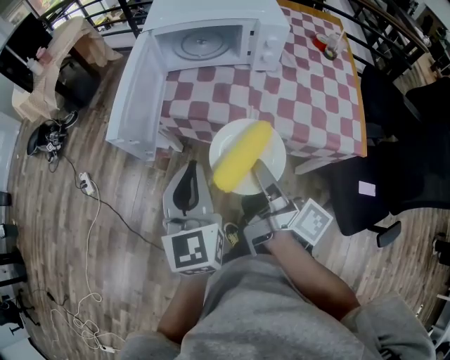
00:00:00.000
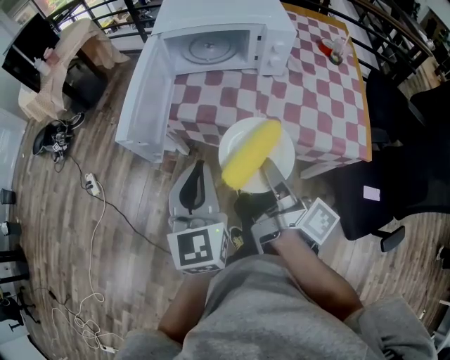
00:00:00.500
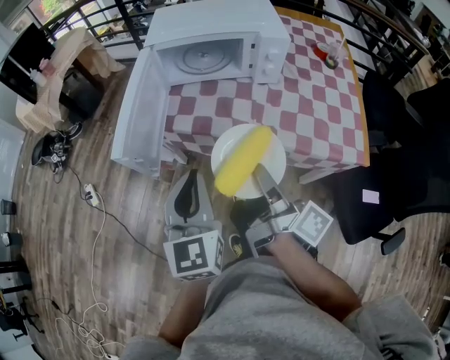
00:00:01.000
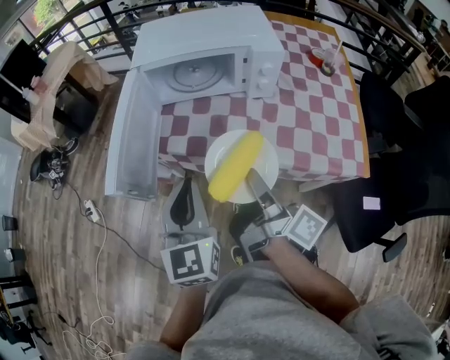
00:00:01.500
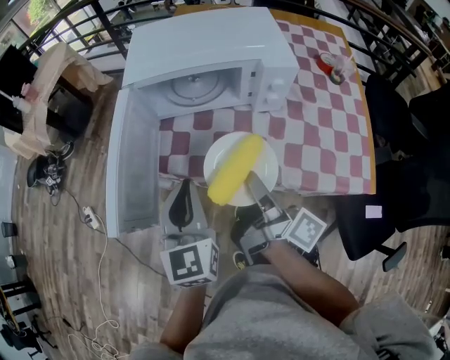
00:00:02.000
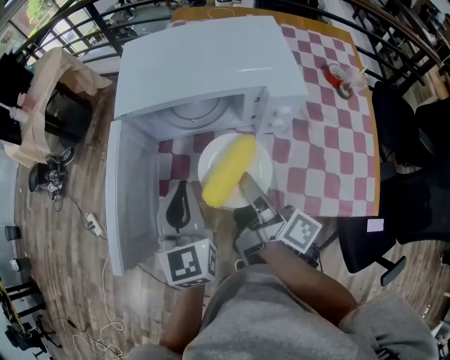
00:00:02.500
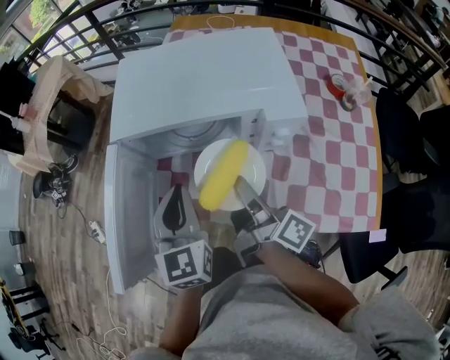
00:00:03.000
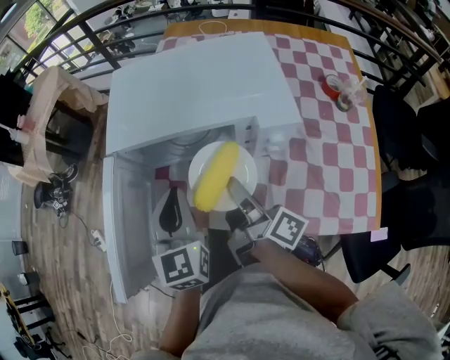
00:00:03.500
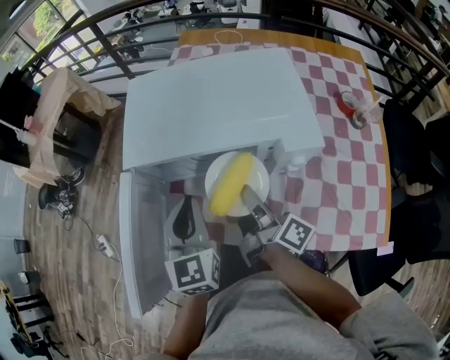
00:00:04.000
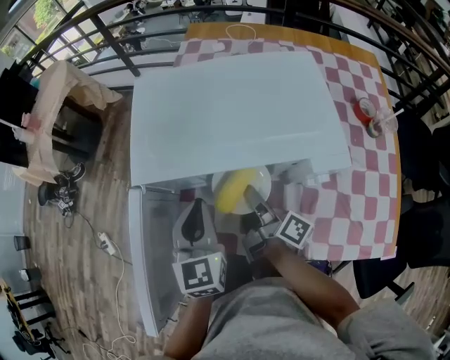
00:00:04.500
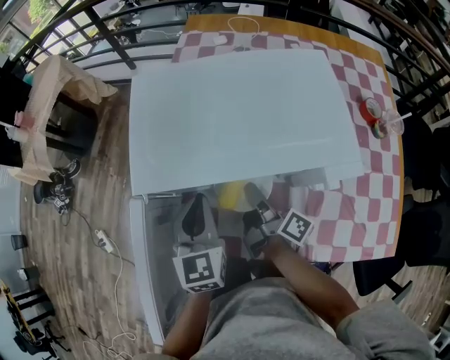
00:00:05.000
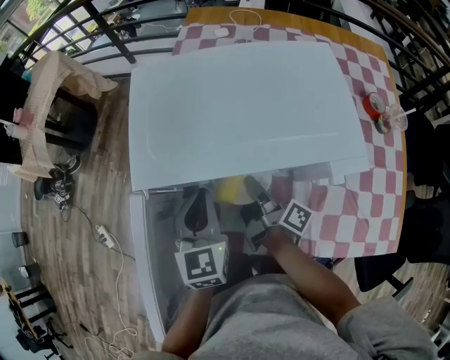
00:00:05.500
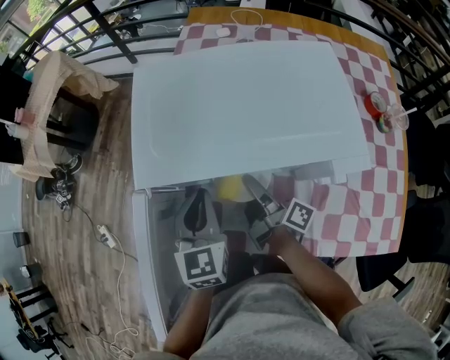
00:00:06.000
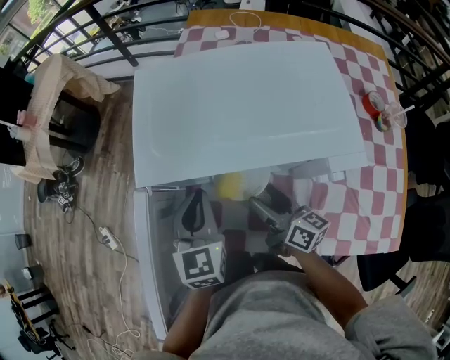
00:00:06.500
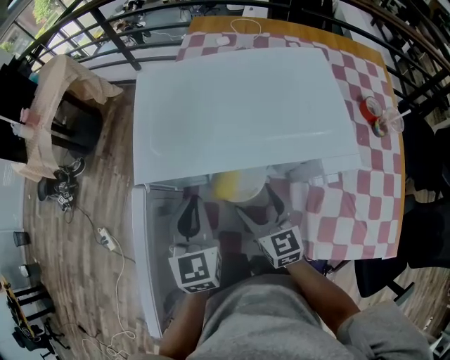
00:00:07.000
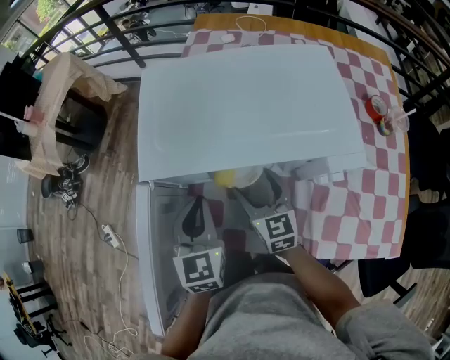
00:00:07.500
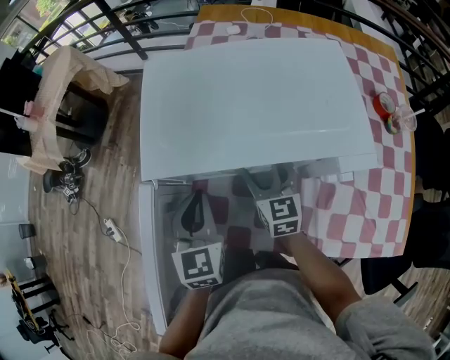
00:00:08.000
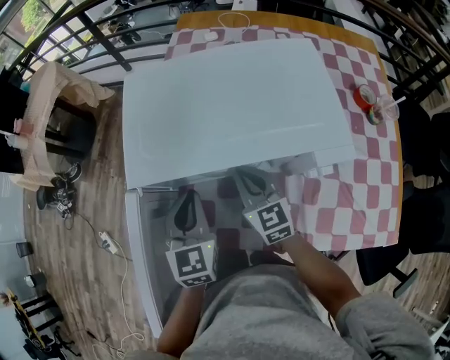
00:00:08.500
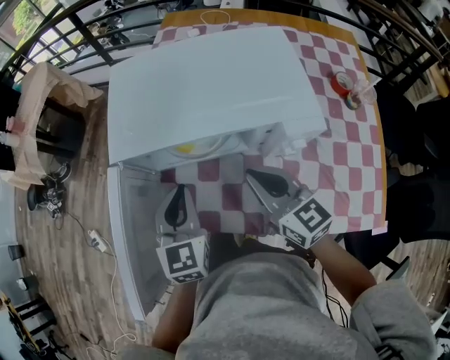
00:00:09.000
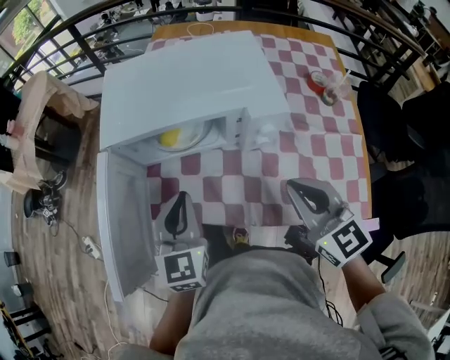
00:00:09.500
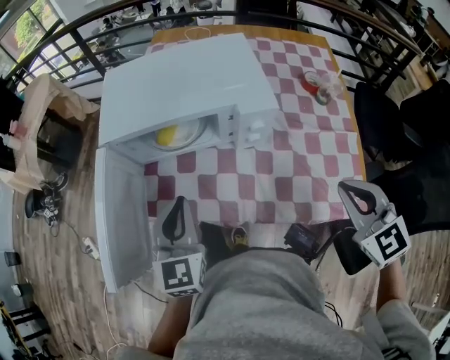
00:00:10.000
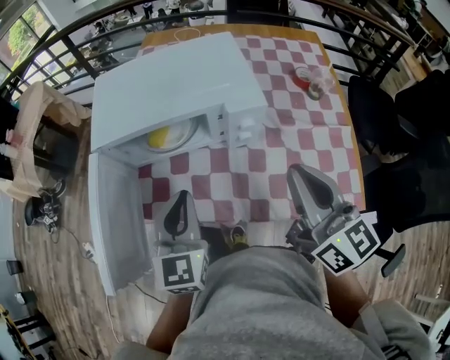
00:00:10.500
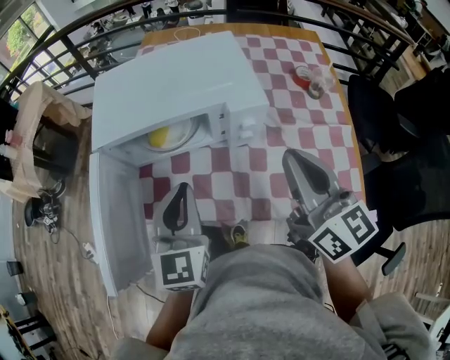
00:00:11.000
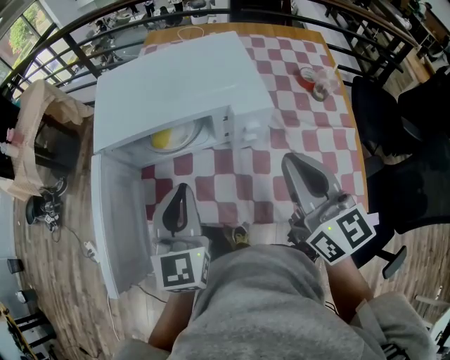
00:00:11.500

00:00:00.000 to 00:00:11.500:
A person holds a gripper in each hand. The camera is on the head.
00:00:00.000 to 00:00:02.000: Both grippers travel together forward, roughly 15 cm.
00:00:02.000 to 00:00:04.000: Both grippers move forward, some 20 cm.
00:00:04.000 to 00:00:06.000: The right gripper shifts about 15 cm downward and forward, while the left gripper heads forward and downward, covering roughly 10 cm.
00:00:06.000 to 00:00:07.500: The right gripper twists about 80 degrees counterclockwise, seen from behind, and opens.
00:00:07.500 to 00:00:09.500: The right gripper heads backward, upward and to the right, covering roughly 30 cm, and closes, while the left gripper travels backward and to the right by about 15 cm.
00:00:09.500 to 00:00:11.500: The left gripper changes place by roughly 5 cm; the right gripper is displaced upward by about 5 cm, goes to the right and returns, about 10 cm each way, and changes its angle by approximately 20 degrees.

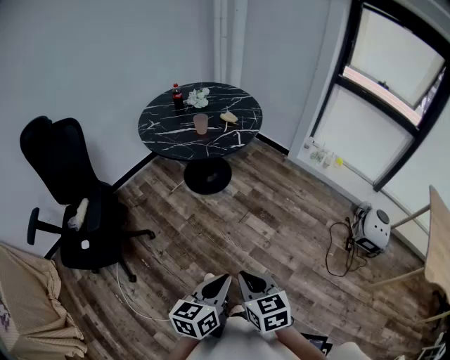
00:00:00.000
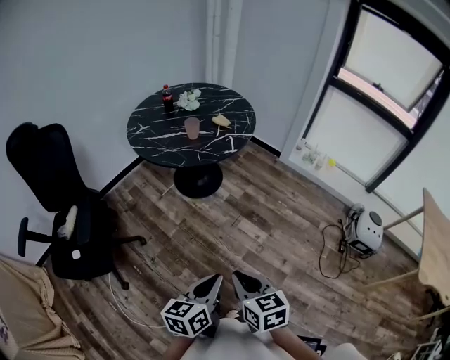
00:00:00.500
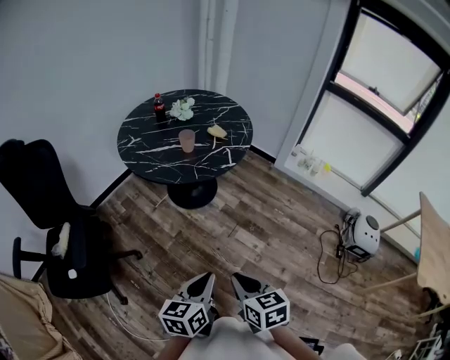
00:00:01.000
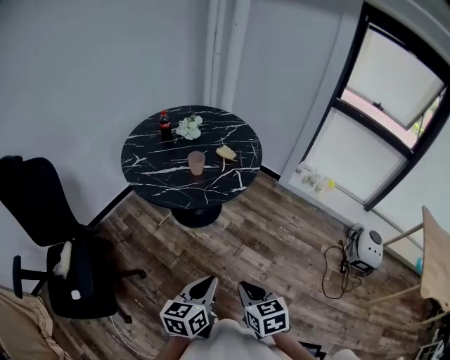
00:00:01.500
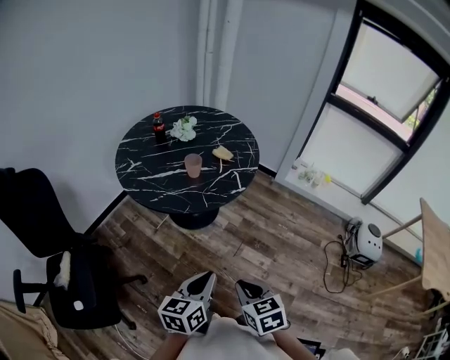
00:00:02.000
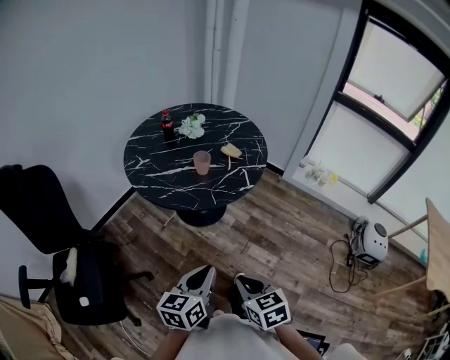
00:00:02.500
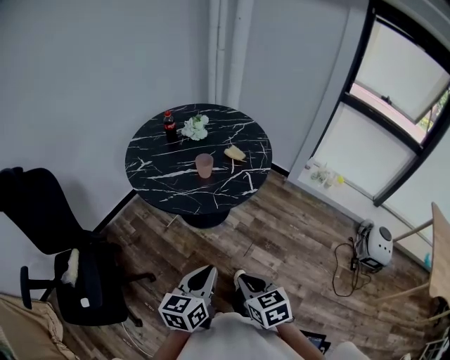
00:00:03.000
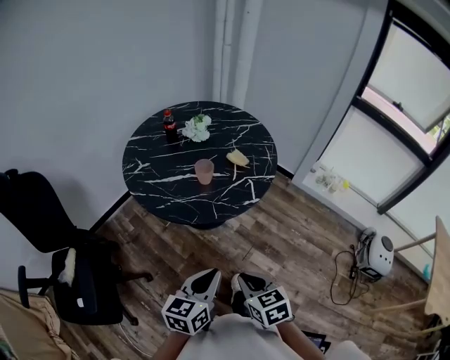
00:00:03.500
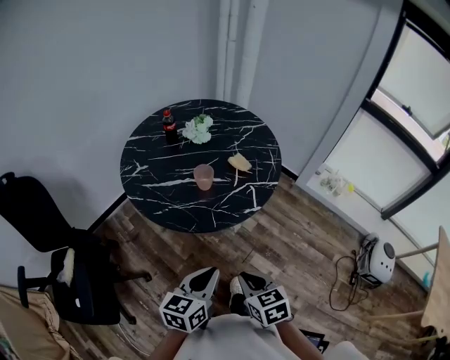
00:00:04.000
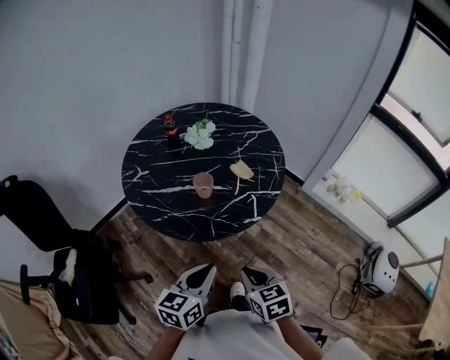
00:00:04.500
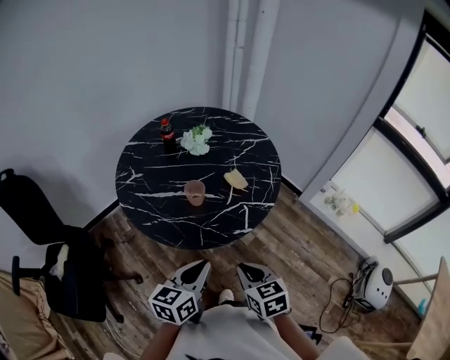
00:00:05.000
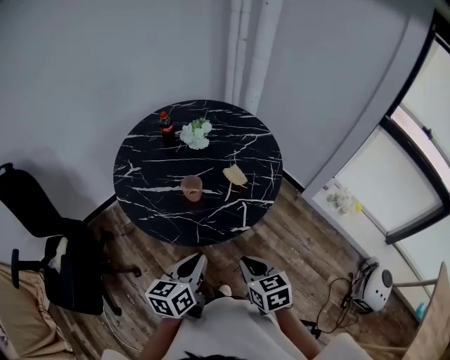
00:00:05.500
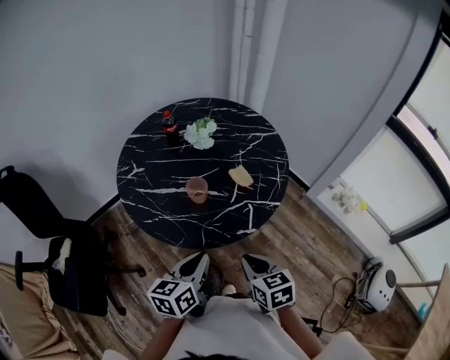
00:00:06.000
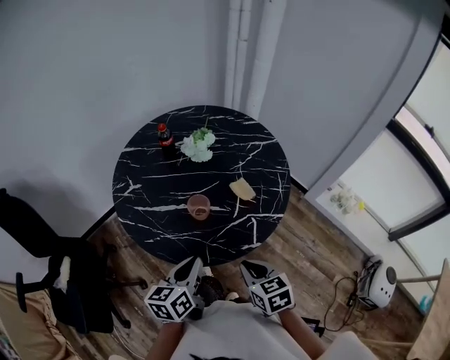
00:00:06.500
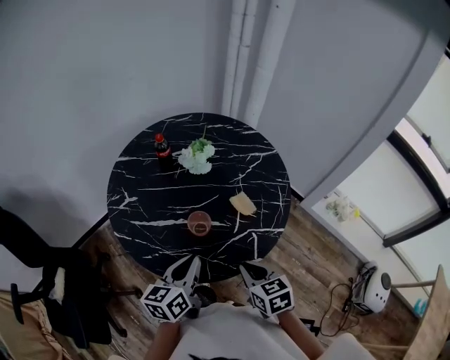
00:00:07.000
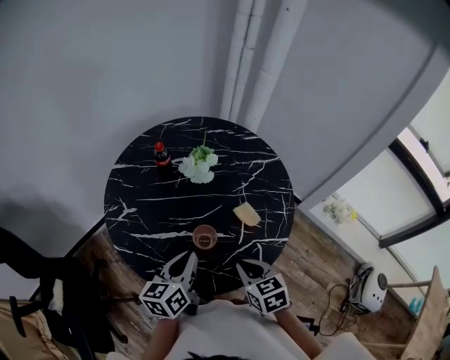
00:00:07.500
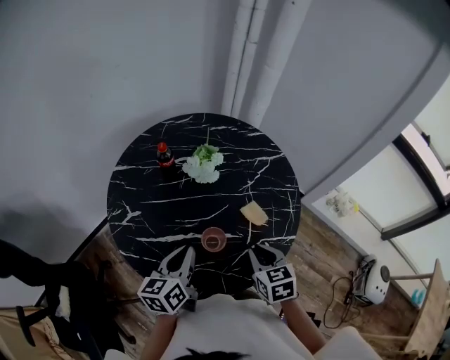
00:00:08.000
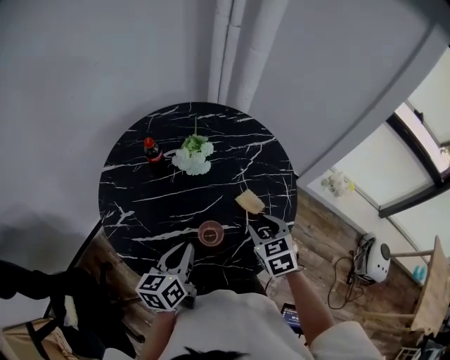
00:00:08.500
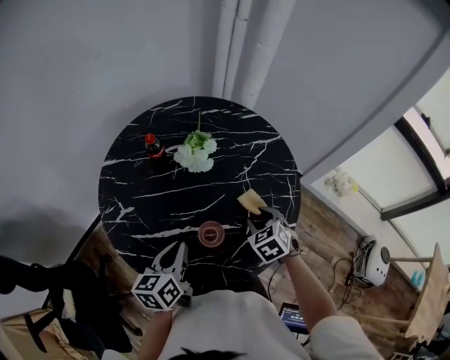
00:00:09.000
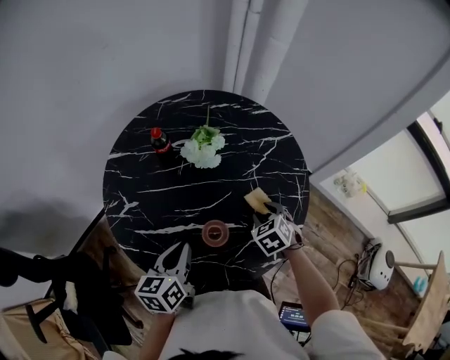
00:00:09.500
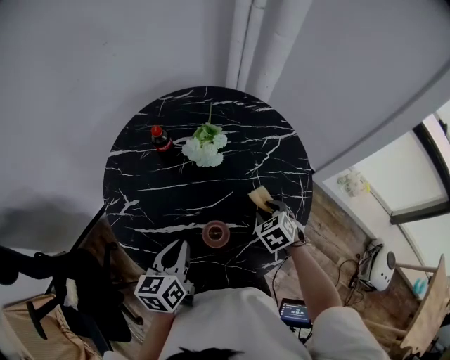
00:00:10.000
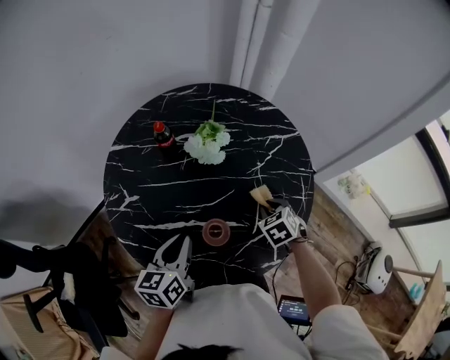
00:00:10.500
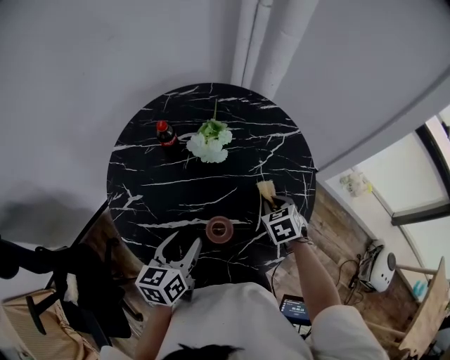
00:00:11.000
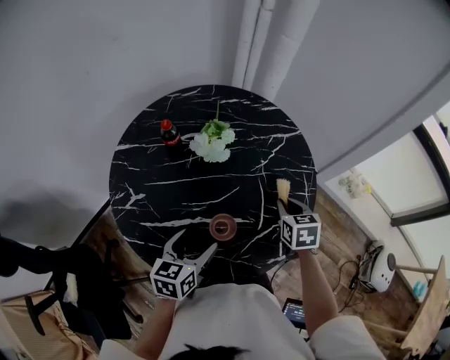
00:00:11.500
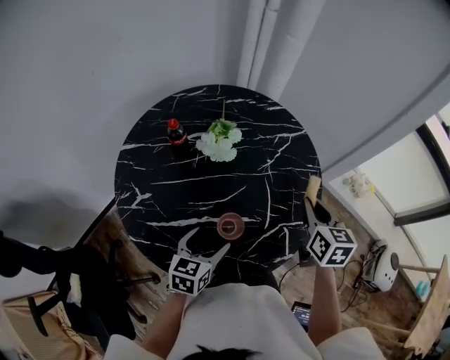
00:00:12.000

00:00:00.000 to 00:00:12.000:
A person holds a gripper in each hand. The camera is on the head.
00:00:00.000 to 00:00:02.000: The left gripper goes some 30 cm forward and to the left, while the right gripper moves forward, roughly 20 cm.
00:00:02.000 to 00:00:04.000: The grippers both shift forward by roughly 15 cm.
00:00:04.000 to 00:00:06.000: The left gripper is displaced forward by about 15 cm. Meanwhile the right gripper heads forward and to the right, covering about 15 cm.
00:00:06.000 to 00:00:08.000: The right gripper is displaced forward by some 20 cm. Meanwhile the left gripper moves forward and to the left, some 25 cm.
00:00:08.000 to 00:00:10.000: The right gripper goes approximately 15 cm forward and downward, swivels about 30 degrees, and opens its fingers.
00:00:10.000 to 00:00:12.000: The right gripper travels upward by approximately 15 cm, changes its angle by about 50 degrees, and closes. The left gripper moves downward, approximately 5 cm, rotates roughly 20 degrees, and opens up.

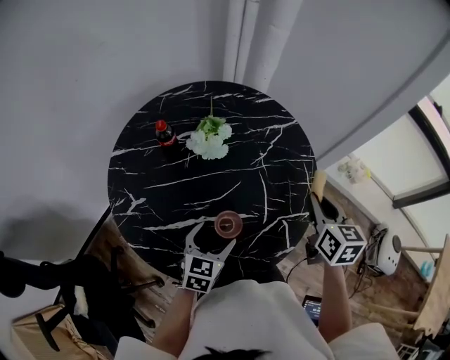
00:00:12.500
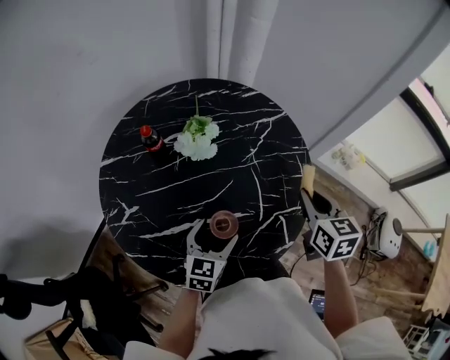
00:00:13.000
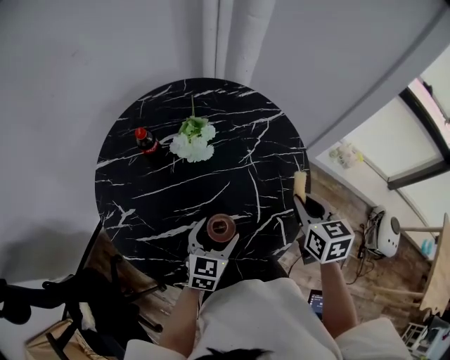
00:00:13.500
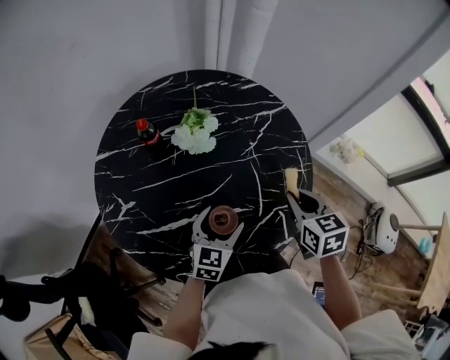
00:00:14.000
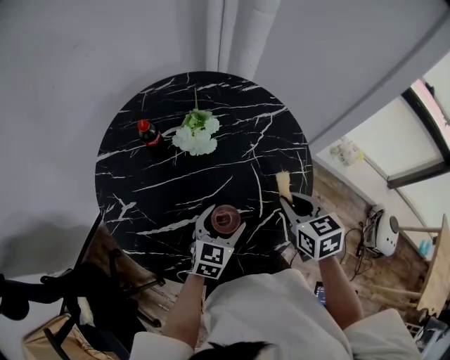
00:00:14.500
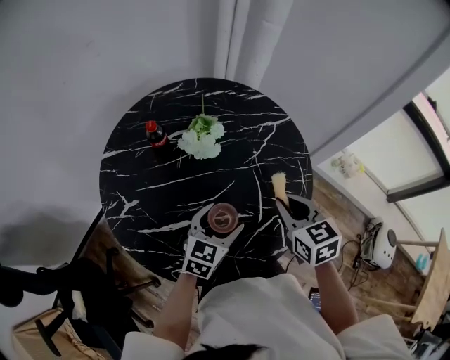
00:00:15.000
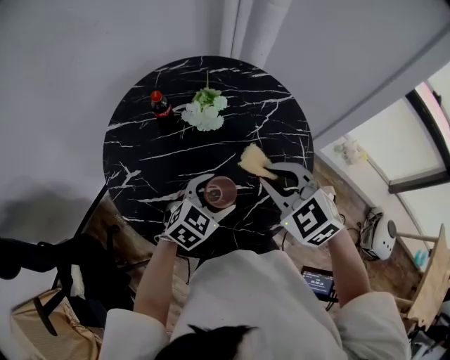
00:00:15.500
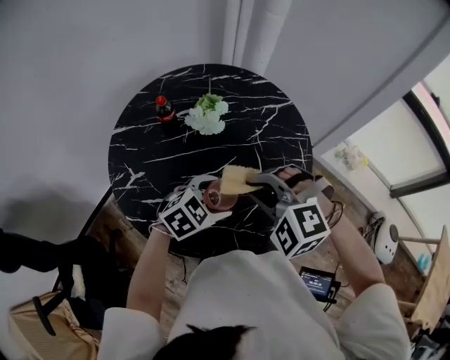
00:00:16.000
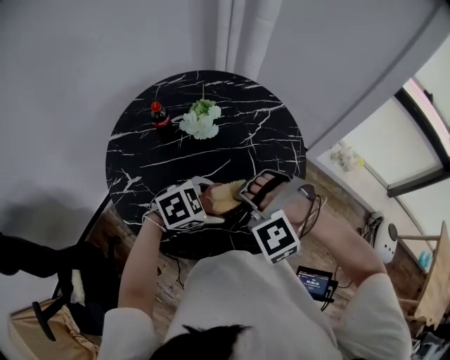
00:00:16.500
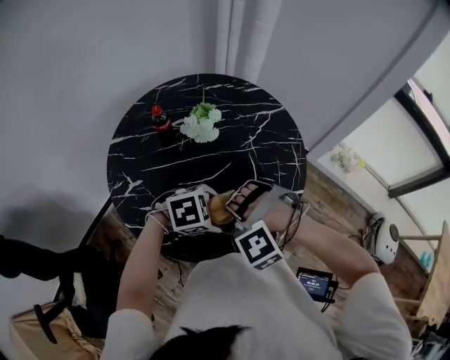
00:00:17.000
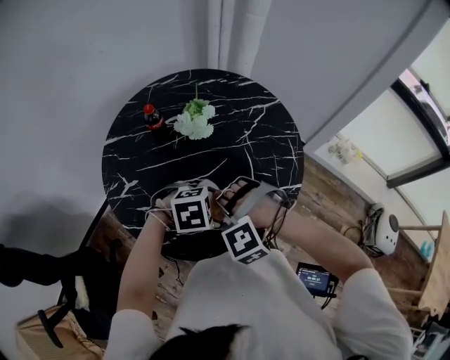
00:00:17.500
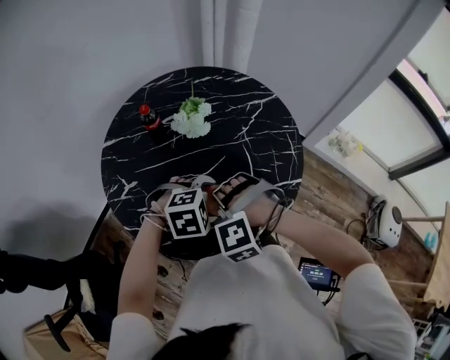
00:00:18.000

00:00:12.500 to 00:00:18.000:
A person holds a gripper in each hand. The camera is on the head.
00:00:12.500 to 00:00:14.500: The left gripper ends up about 5 cm from where it was. The right gripper travels to the left and downward by approximately 10 cm, and rotates roughly 20 degrees.
00:00:14.500 to 00:00:16.000: The right gripper heads to the left, upward and backward, covering approximately 15 cm, and rotates around the line of its fingers by some 80 degrees, counterclockwise from behind, while the left gripper moves upward, about 5 cm, and changes its angle by roughly 40 degrees.
00:00:16.000 to 00:00:18.000: The left gripper rotates roughly 30 degrees. The right gripper is displaced downward by about 10 cm, and swivels some 30 degrees.
